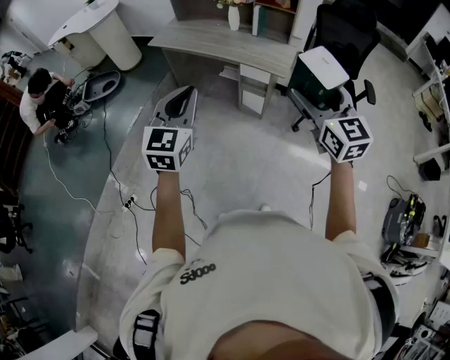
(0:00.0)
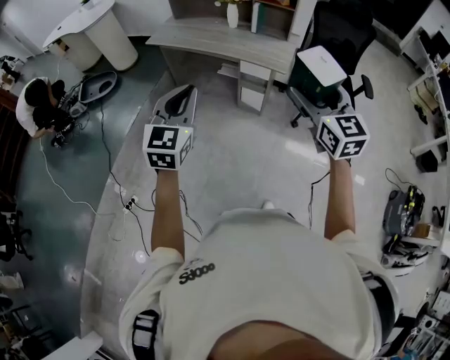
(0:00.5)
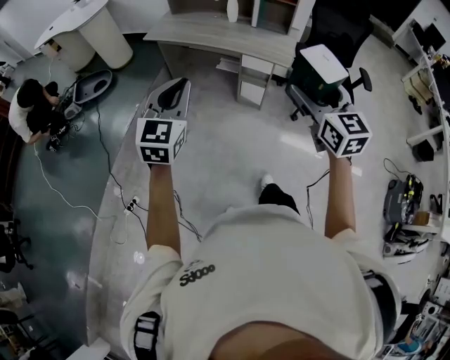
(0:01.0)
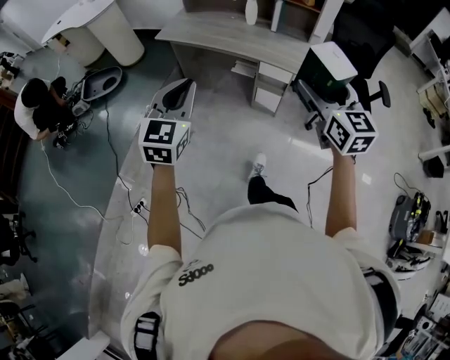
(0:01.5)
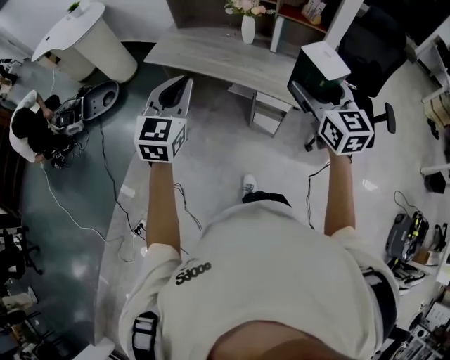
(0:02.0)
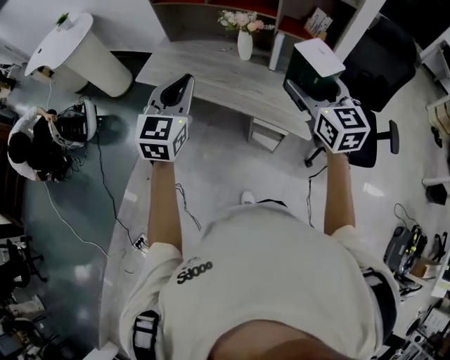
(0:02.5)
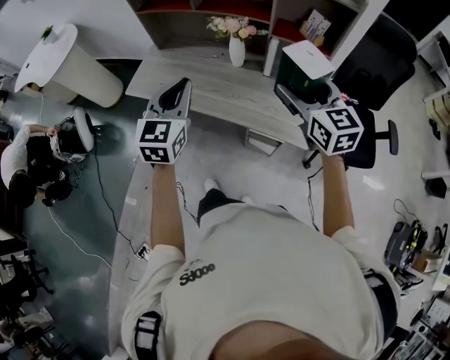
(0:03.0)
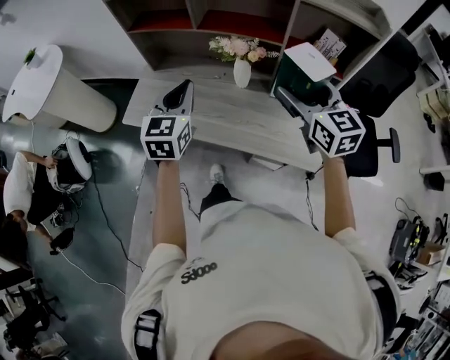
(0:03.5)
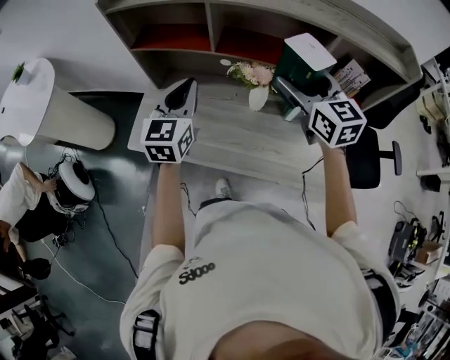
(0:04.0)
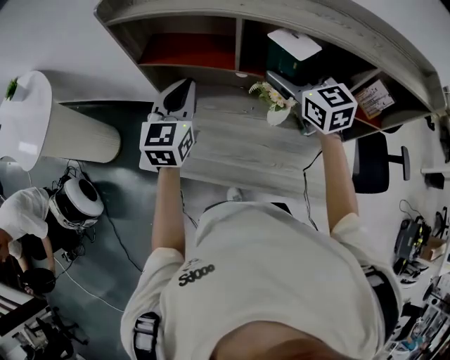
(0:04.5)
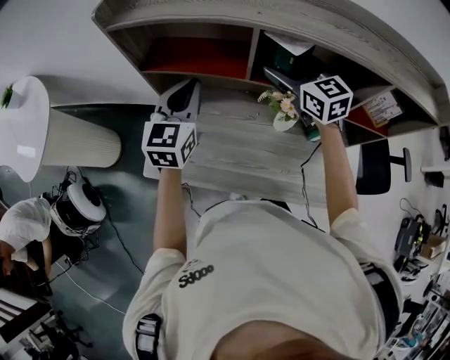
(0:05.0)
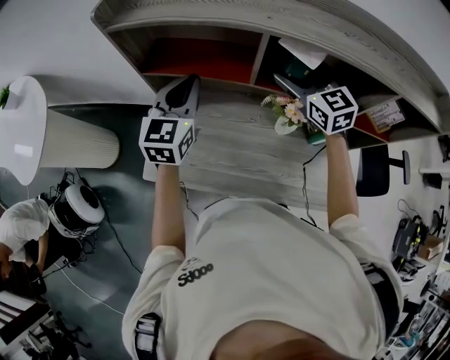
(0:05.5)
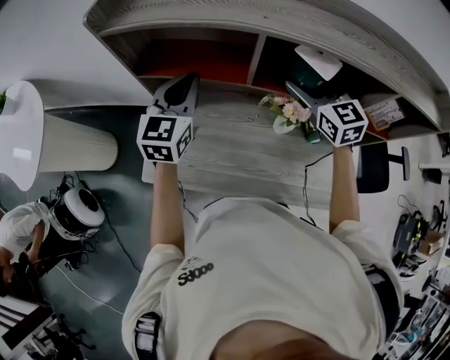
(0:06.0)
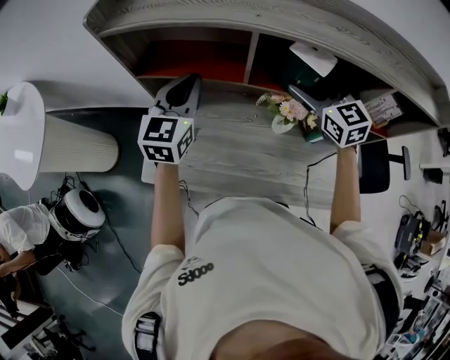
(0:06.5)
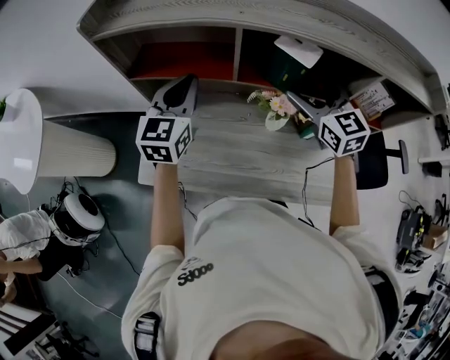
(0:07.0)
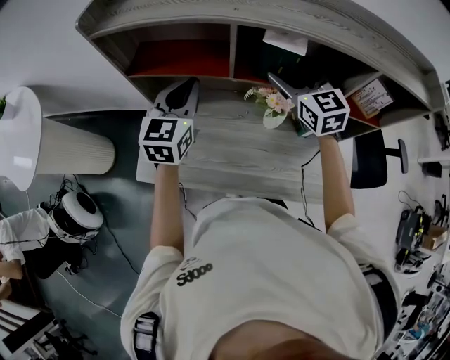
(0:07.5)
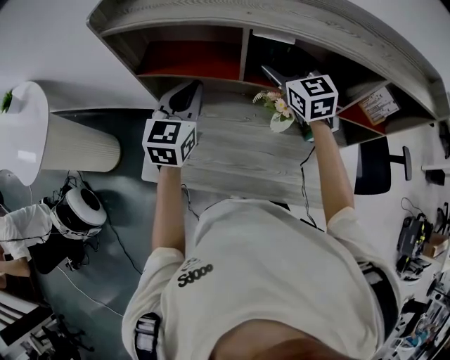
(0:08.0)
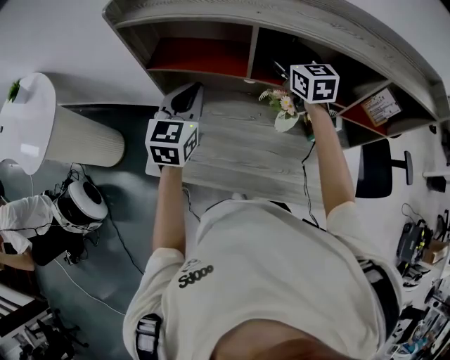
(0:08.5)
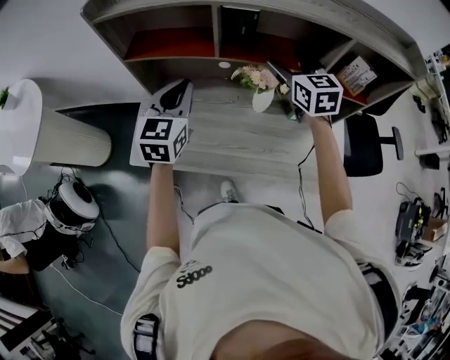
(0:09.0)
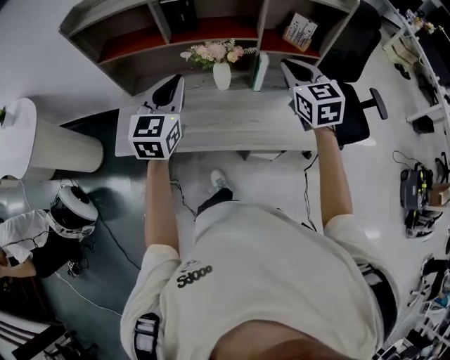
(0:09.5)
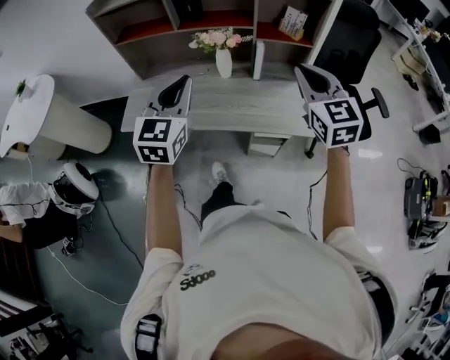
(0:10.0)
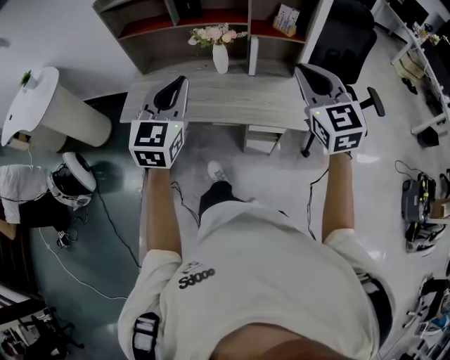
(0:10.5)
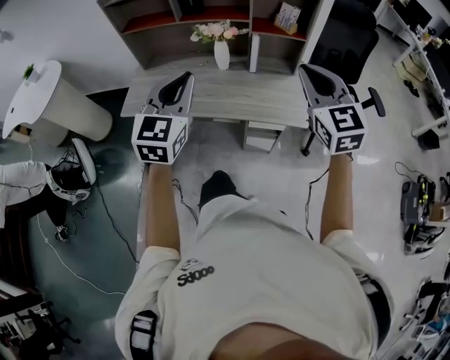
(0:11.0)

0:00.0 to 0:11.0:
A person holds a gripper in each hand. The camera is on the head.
0:00.0 to 0:02.0: Both grippers travel together forward, about 35 cm.
0:02.0 to 0:03.5: The two grippers go about 40 cm forward.
0:03.5 to 0:05.5: The two grippers go about 35 cm forward and to the left.
0:05.5 to 0:07.5: The left gripper shifts by some 5 cm.
0:07.5 to 0:09.0: The left gripper is displaced backward by roughly 10 cm; the right gripper moves approximately 5 cm.
0:09.0 to 0:11.0: The two grippers travel together, backward and to the right, some 50 cm. The right gripper closes.

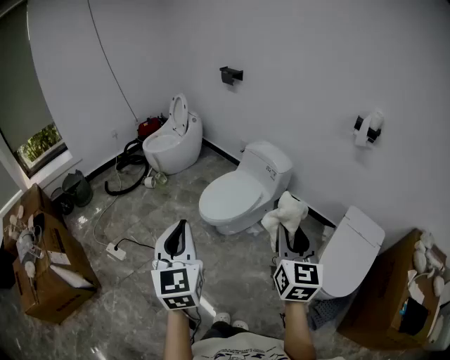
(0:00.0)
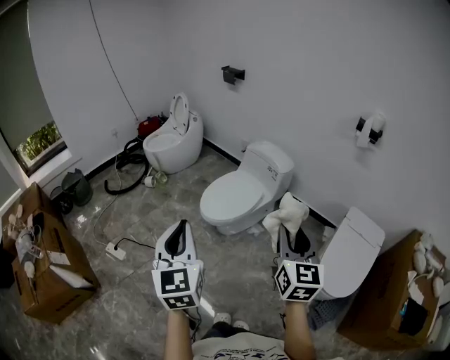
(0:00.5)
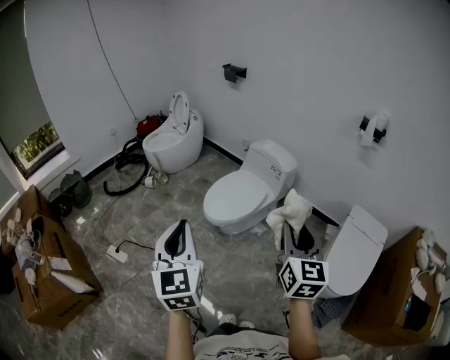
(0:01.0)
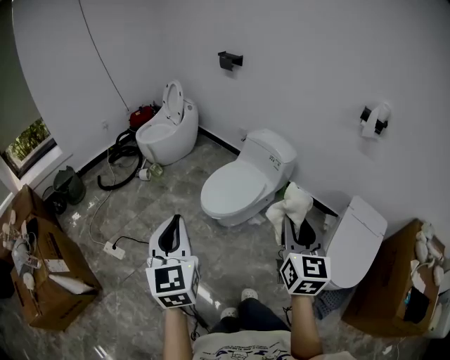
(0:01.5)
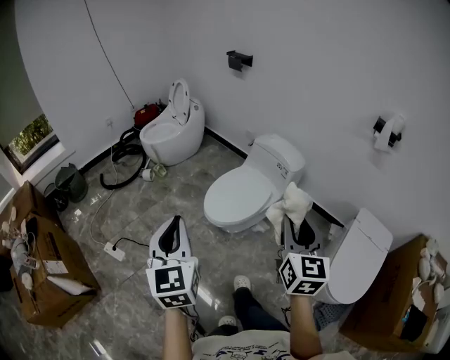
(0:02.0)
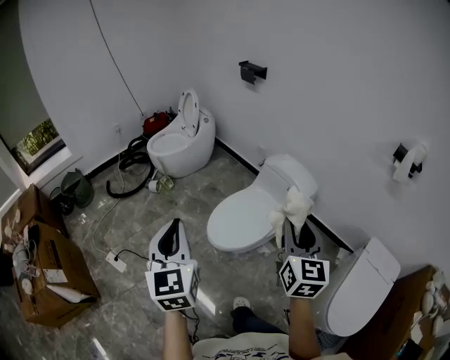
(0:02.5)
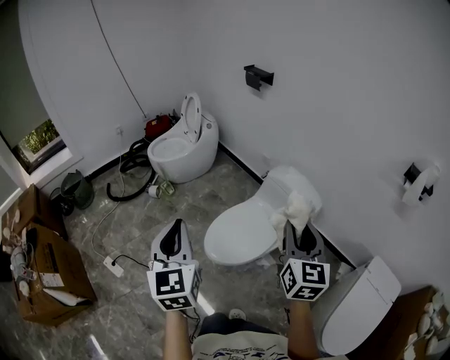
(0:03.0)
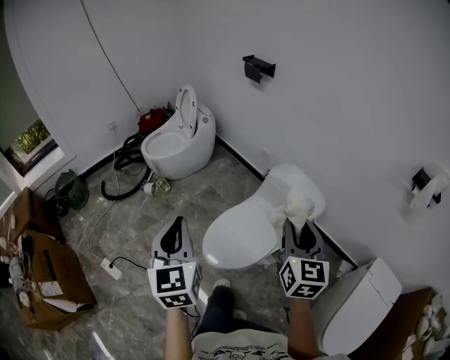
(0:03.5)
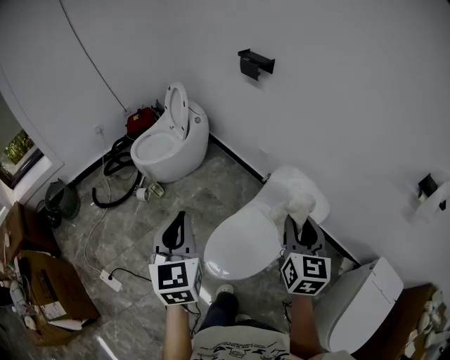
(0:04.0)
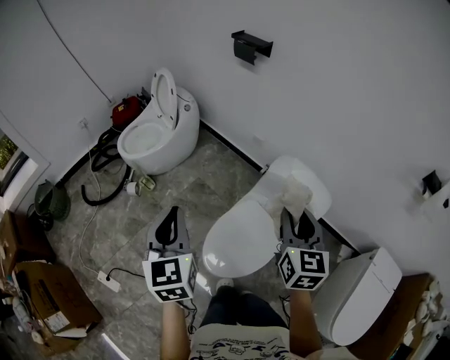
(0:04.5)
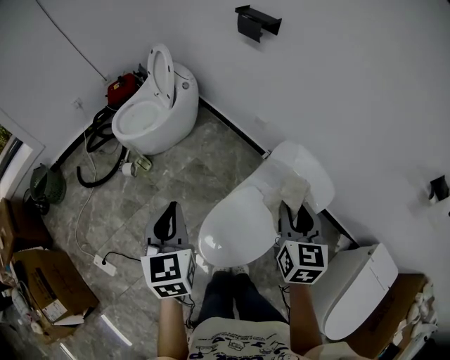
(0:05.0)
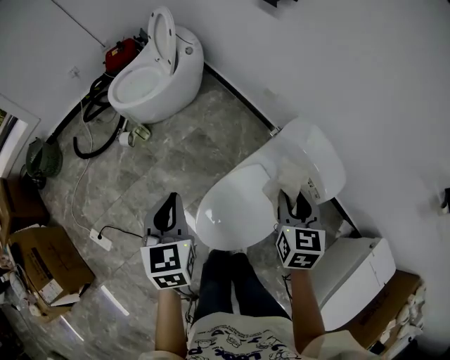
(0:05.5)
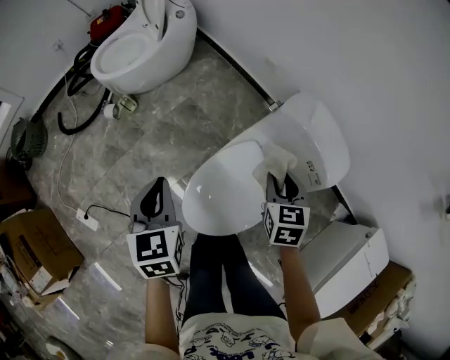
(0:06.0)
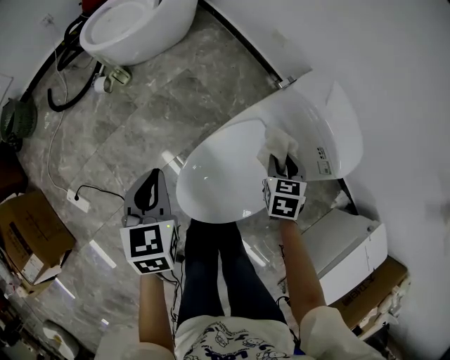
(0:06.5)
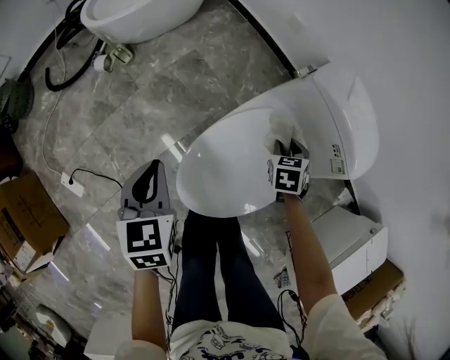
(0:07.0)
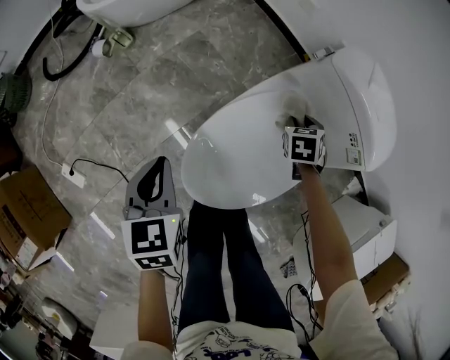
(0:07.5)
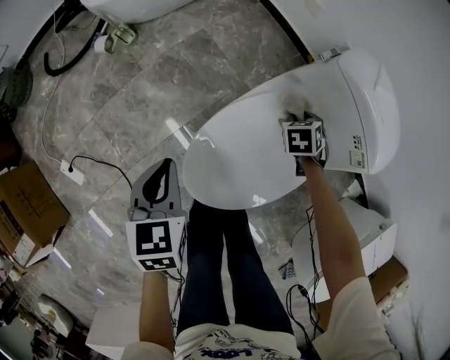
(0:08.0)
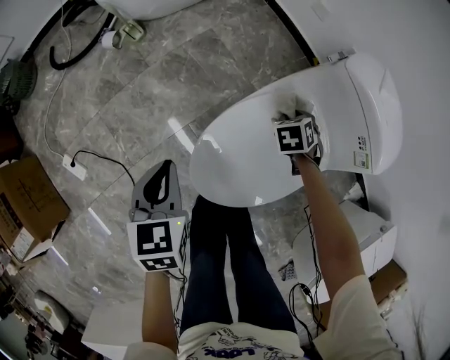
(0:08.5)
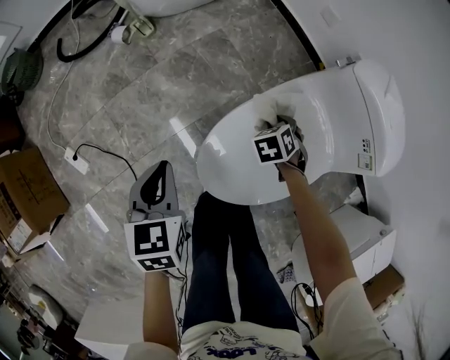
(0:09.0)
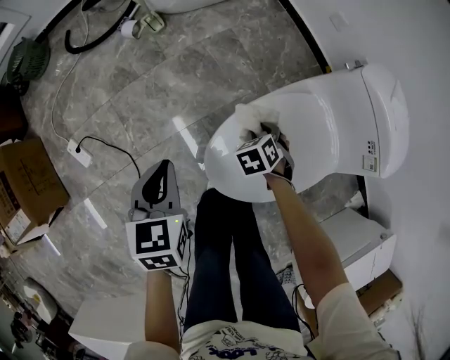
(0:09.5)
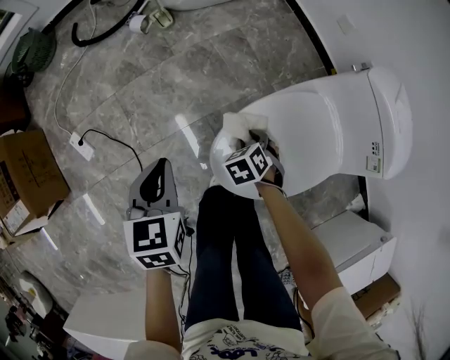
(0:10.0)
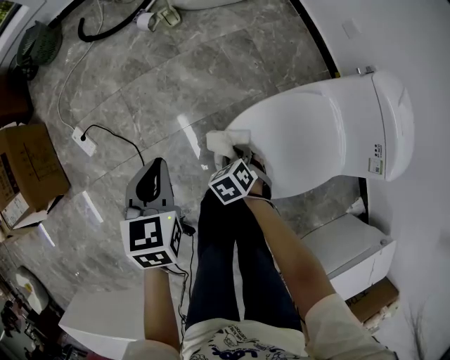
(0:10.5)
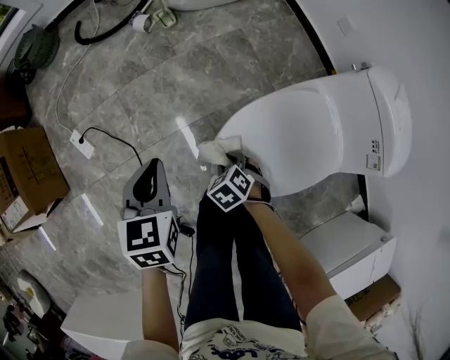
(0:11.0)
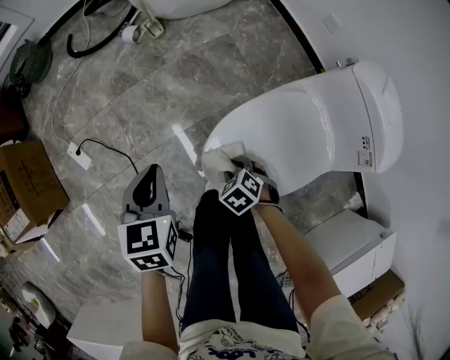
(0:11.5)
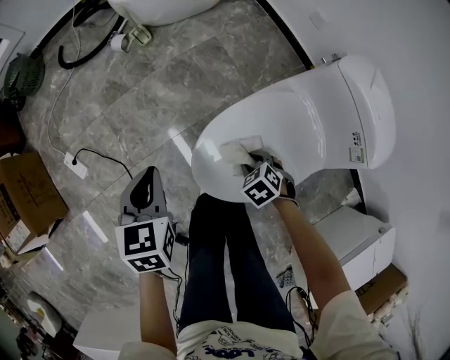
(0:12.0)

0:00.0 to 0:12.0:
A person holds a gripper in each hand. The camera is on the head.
0:00.0 to 0:02.0: The left gripper moves forward and to the left, about 15 cm. Meanwhile the right gripper moves forward, approximately 15 cm.
0:02.0 to 0:04.0: Both grippers are carried forward, approximately 40 cm.
0:04.0 to 0:06.0: The grippers both shift downward and forward by some 30 cm. The left gripper rotates approximately 20 degrees, while the right gripper tips its fingers downward by some 30 degrees.
0:06.0 to 0:08.0: The right gripper moves downward, approximately 30 cm, and turns by roughly 30 degrees, while the left gripper heads downward, covering about 20 cm.
0:08.0 to 0:10.0: The right gripper moves roughly 30 cm, and changes its angle by approximately 30 degrees. The left gripper moves roughly 15 cm.
0:10.0 to 0:12.0: The right gripper is displaced backward by some 10 cm, and moves about 10 cm to the left and comes back.

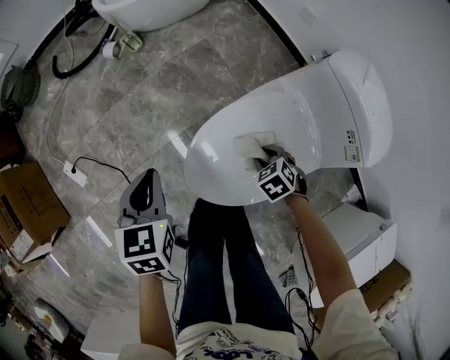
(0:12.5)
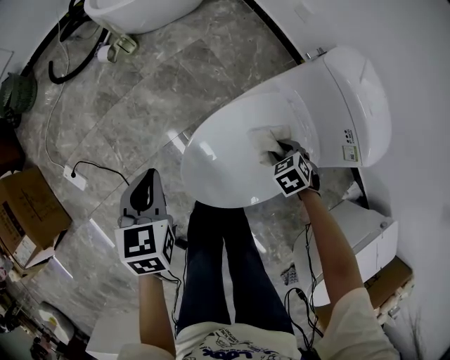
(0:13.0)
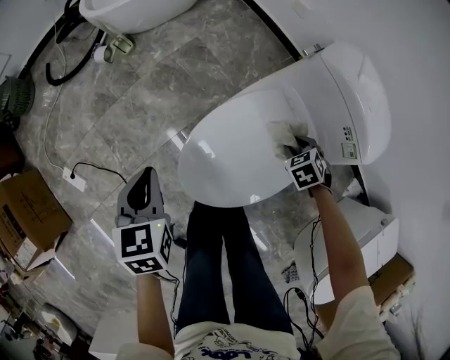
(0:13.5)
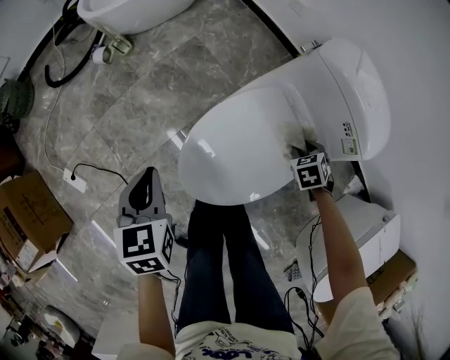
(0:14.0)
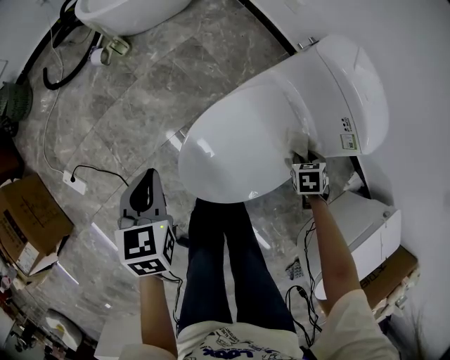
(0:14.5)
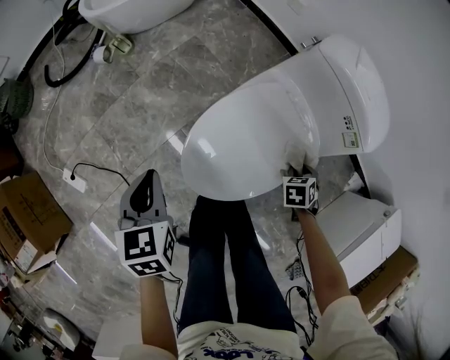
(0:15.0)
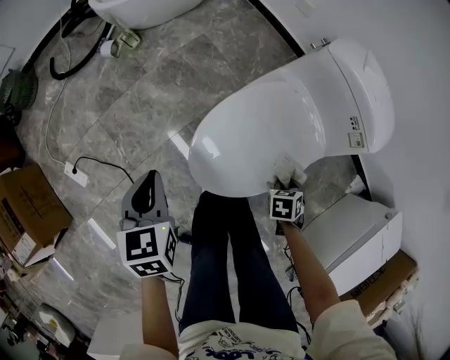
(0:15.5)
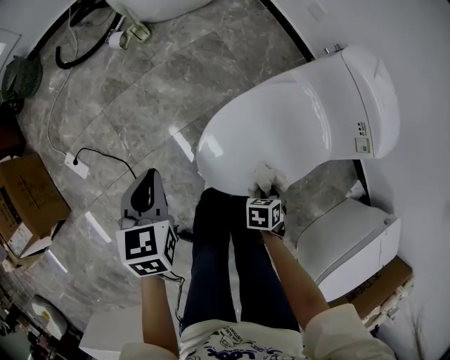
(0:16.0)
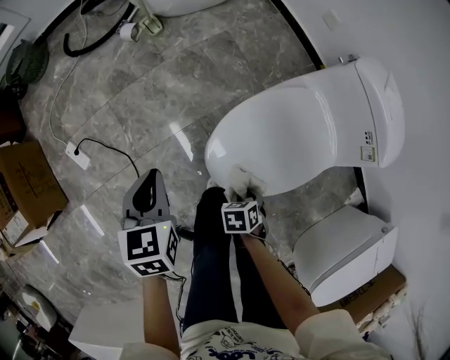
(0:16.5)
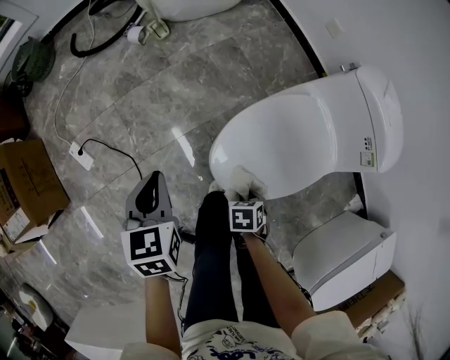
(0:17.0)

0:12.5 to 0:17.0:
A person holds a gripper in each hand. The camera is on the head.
0:12.5 to 0:14.5: The right gripper shifts by approximately 20 cm, and swivels about 40 degrees.
0:14.5 to 0:17.0: The left gripper moves approximately 15 cm, while the right gripper ends up approximately 35 cm from where it was.
